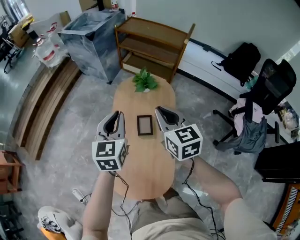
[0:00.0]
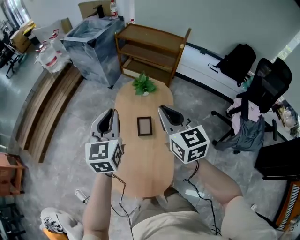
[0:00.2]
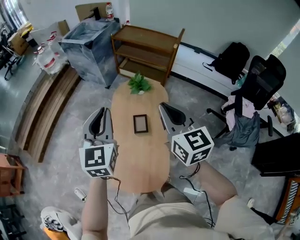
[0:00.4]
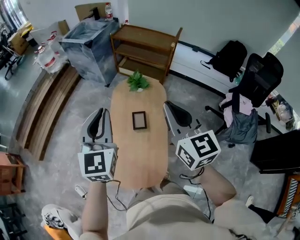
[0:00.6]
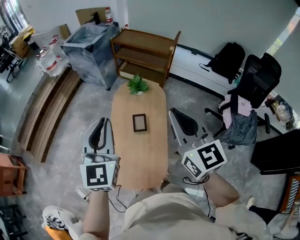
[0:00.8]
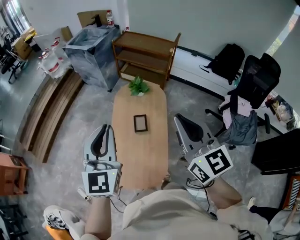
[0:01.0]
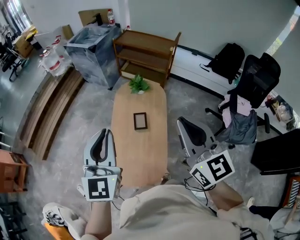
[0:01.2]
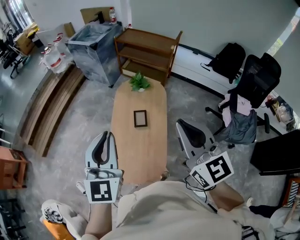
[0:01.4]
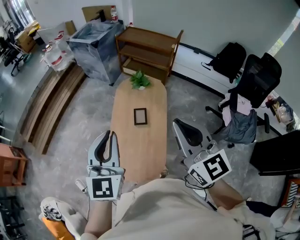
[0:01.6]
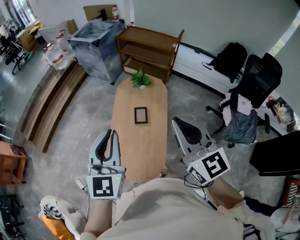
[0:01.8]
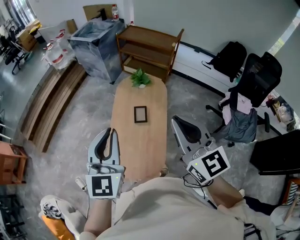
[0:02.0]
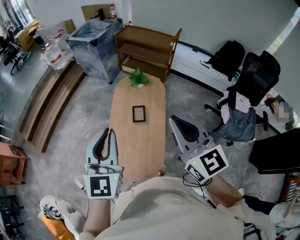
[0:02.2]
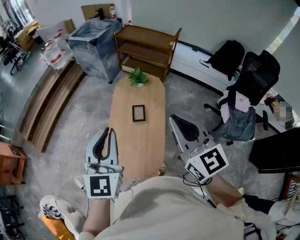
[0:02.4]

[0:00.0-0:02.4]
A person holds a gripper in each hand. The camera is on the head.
0:00.0 to 0:01.2: Both grippers move upward and backward, about 30 cm. The right gripper changes its angle by approximately 20 degrees.
0:01.2 to 0:02.4: The left gripper shifts by some 5 cm.

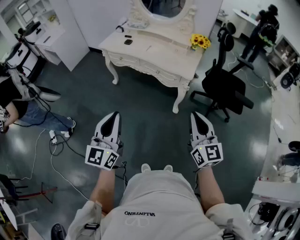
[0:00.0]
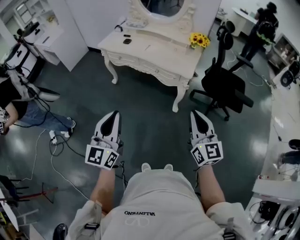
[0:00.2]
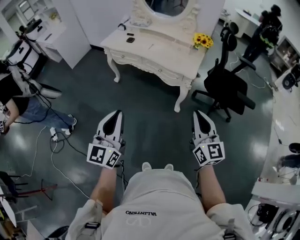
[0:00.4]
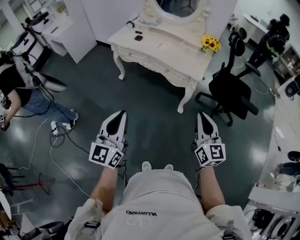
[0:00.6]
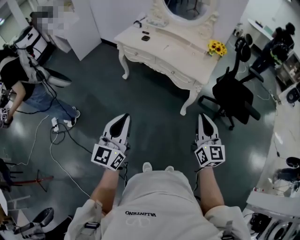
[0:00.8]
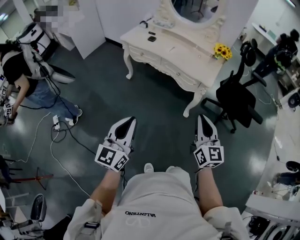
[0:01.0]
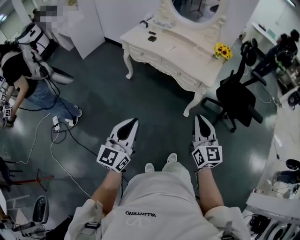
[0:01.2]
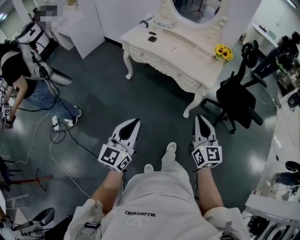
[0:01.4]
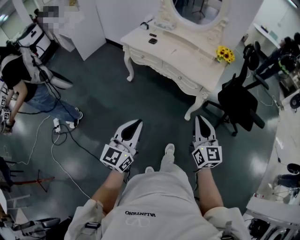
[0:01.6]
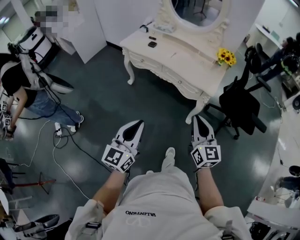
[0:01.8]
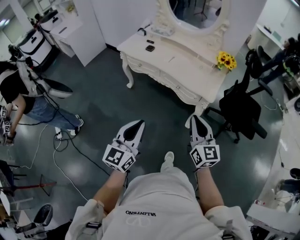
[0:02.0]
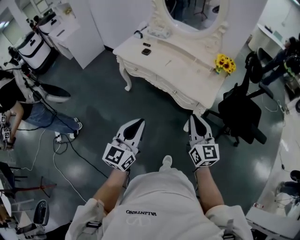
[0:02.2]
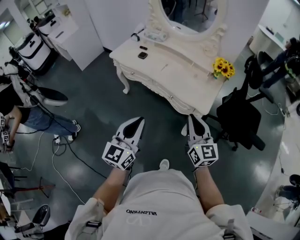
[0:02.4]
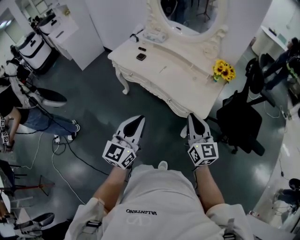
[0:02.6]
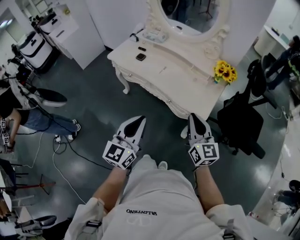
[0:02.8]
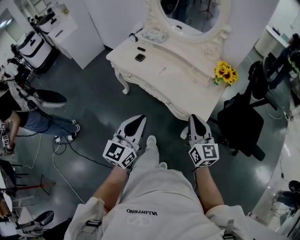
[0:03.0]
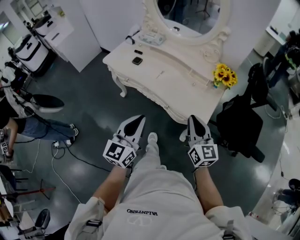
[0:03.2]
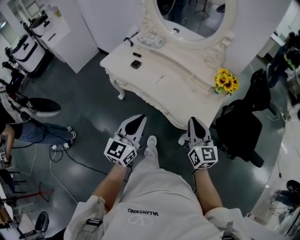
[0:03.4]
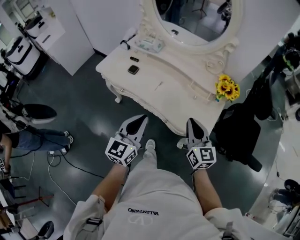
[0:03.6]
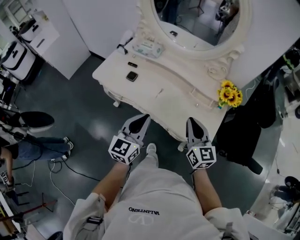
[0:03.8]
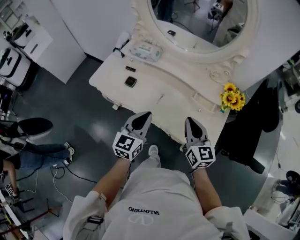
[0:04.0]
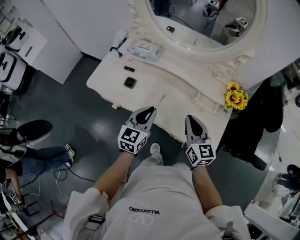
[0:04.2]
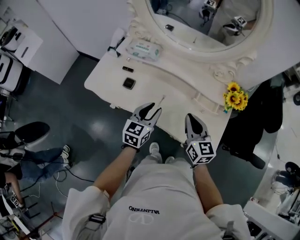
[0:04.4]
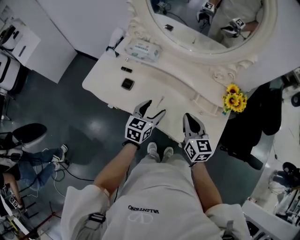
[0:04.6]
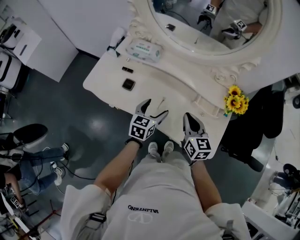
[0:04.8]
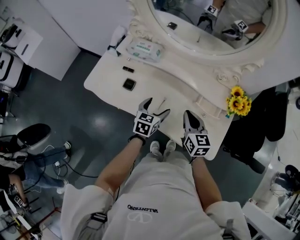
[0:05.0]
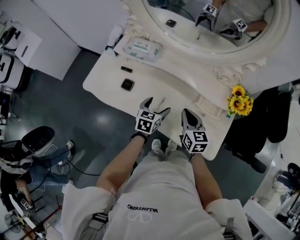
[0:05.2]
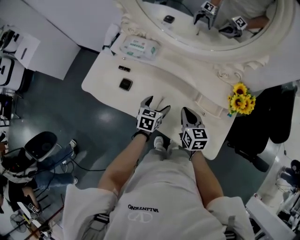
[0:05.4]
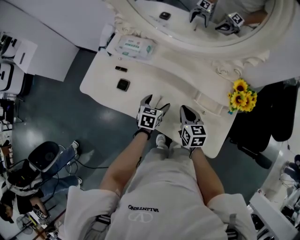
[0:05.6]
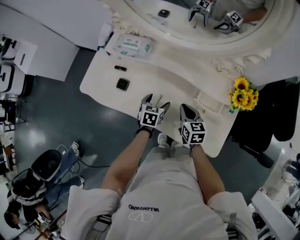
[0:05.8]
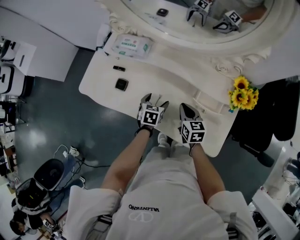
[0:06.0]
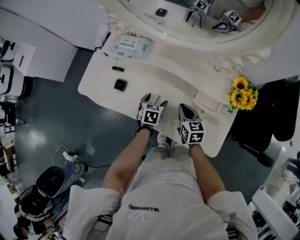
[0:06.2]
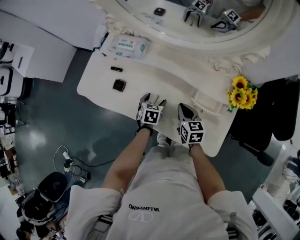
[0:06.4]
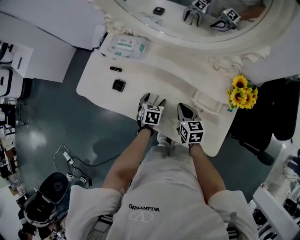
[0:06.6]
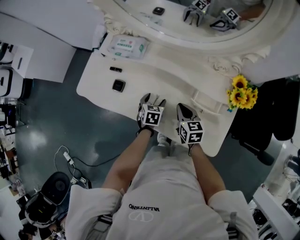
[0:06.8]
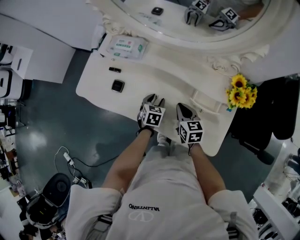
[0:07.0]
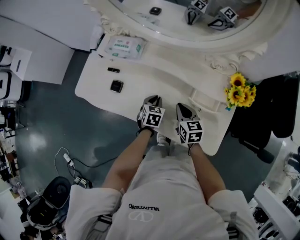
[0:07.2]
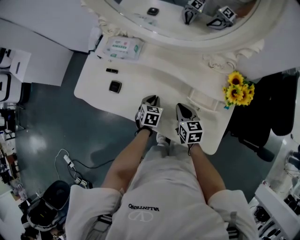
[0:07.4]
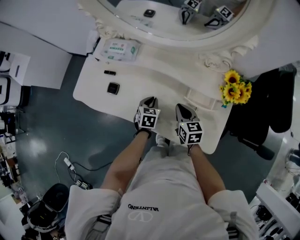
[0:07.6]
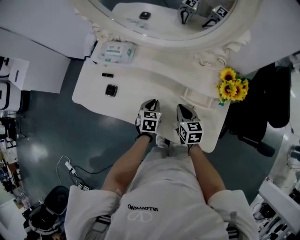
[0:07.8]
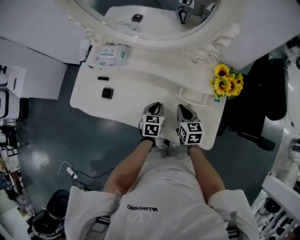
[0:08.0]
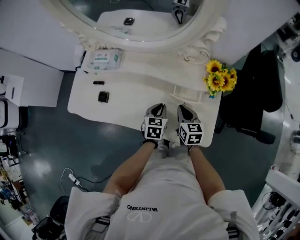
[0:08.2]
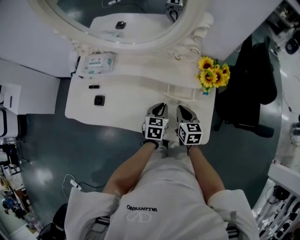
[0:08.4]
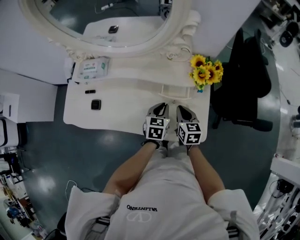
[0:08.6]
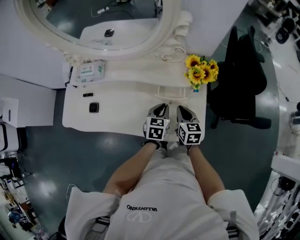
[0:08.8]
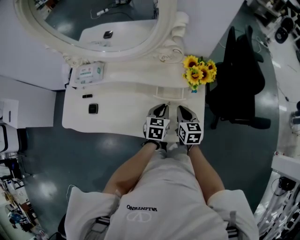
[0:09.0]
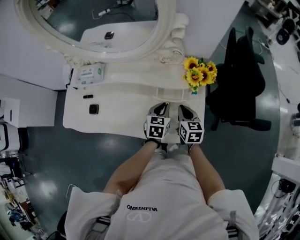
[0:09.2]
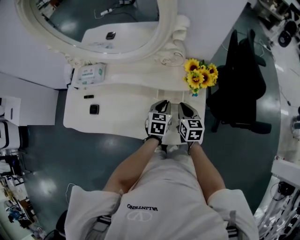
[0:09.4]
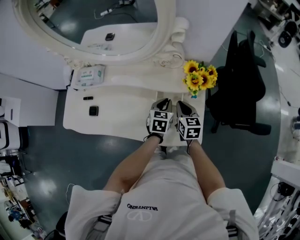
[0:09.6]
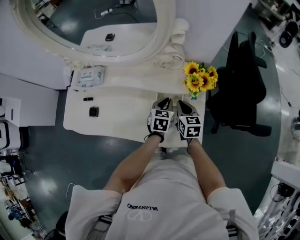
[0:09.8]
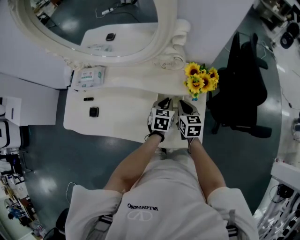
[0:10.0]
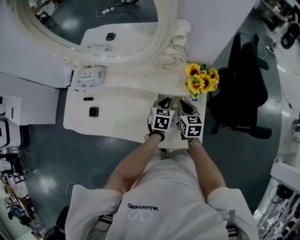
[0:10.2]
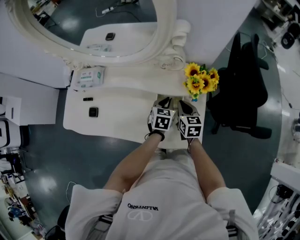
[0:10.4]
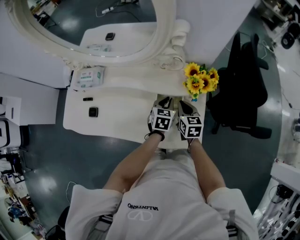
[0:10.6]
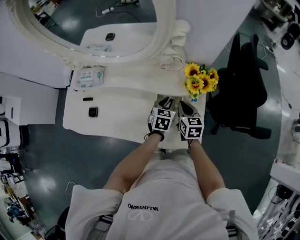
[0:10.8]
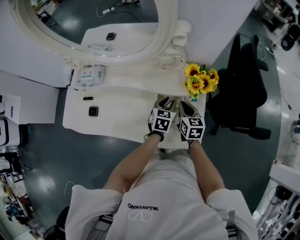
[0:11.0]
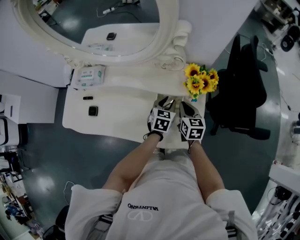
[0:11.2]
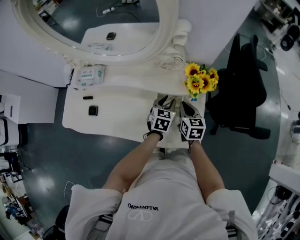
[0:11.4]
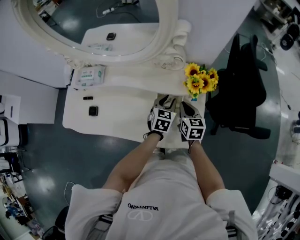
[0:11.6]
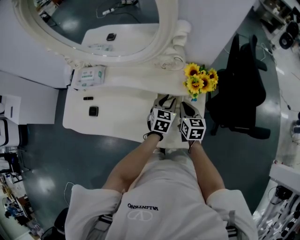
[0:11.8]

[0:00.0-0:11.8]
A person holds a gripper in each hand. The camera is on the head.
0:00.0 to 0:01.4: The left gripper goes some 10 cm downward and to the left, while the right gripper heads to the left, covering roughly 10 cm.
0:01.4 to 0:03.0: The left gripper shifts some 35 cm forward and to the right. Meanwhile the right gripper heads forward, covering roughly 30 cm.
0:03.0 to 0:04.4: Both grippers travel together forward, approximately 35 cm. The left gripper turns by some 30 degrees.
0:04.4 to 0:06.0: The grippers both shift downward and forward by about 20 cm. The left gripper tips its fingers downward by about 30 degrees, and opens up, while the right gripper rotates about 20 degrees.
0:06.0 to 0:07.4: The left gripper closes its fingers.
0:07.4 to 0:08.8: The right gripper shifts some 15 cm to the right, and rotates approximately 20 degrees. The left gripper is displaced to the right and upward by approximately 20 cm, and changes its angle by roughly 20 degrees.
0:08.8 to 0:10.4: Both grippers move forward, about 10 cm.
0:10.4 to 0:11.8: The grippers stay close to where they were, moving slightly.

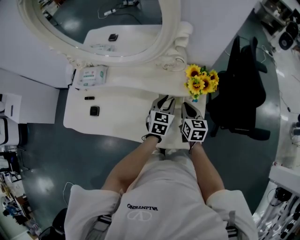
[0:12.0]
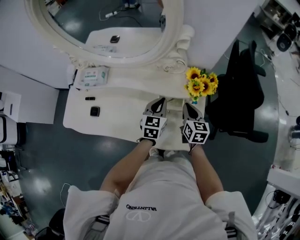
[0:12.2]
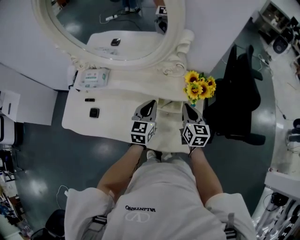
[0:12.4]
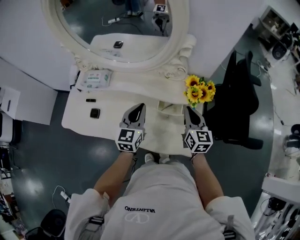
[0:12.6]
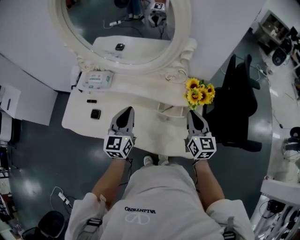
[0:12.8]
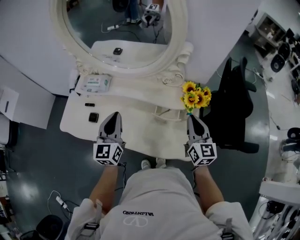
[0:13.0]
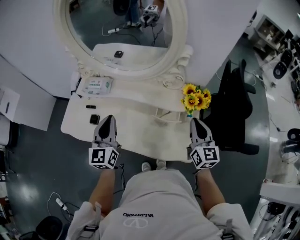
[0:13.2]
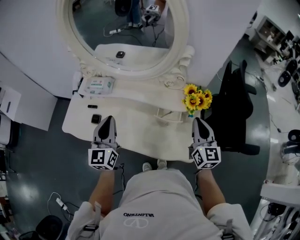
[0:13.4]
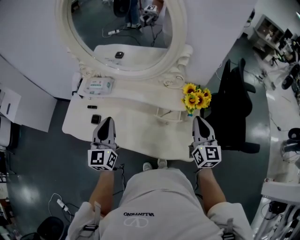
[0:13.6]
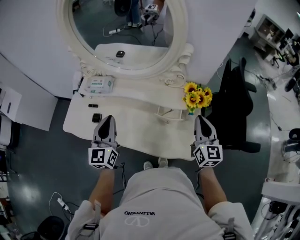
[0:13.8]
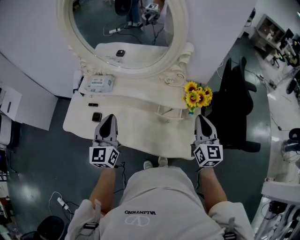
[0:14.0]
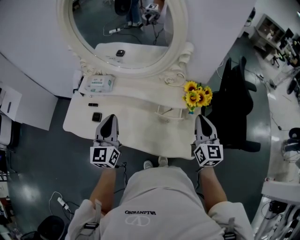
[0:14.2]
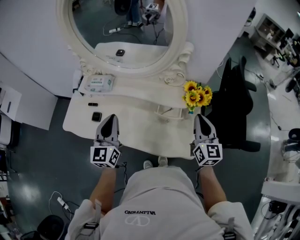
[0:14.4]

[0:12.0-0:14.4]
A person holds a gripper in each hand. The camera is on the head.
0:12.0 to 0:13.2: The left gripper is displaced to the left, upward and backward by approximately 35 cm, and angles its fingers upward, by some 30 degrees, while the right gripper heads upward, covering approximately 15 cm, and swivels some 20 degrees.
0:13.2 to 0:14.4: There are only small adjustments of the grippers.

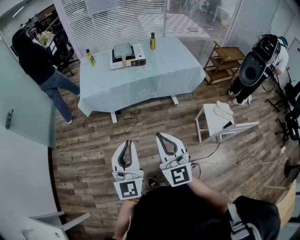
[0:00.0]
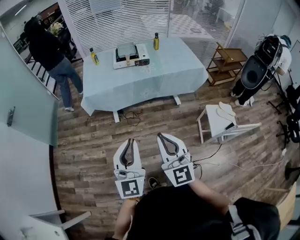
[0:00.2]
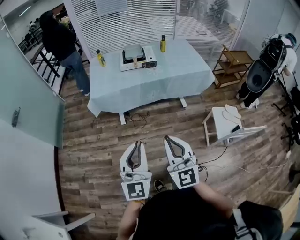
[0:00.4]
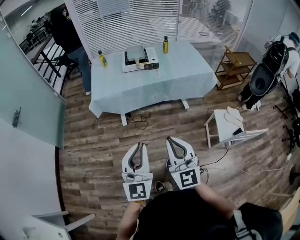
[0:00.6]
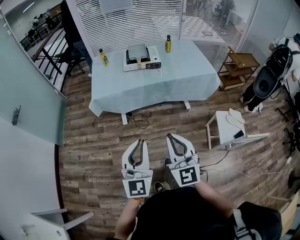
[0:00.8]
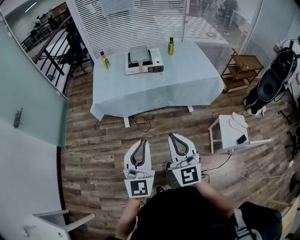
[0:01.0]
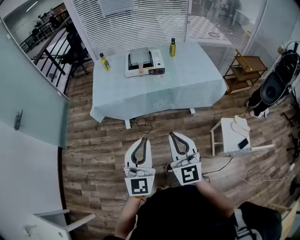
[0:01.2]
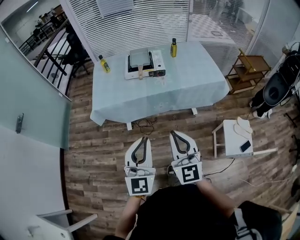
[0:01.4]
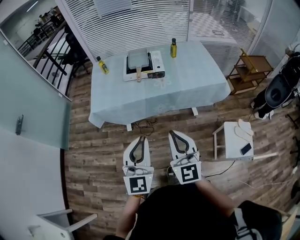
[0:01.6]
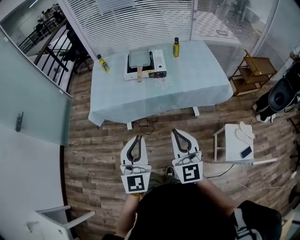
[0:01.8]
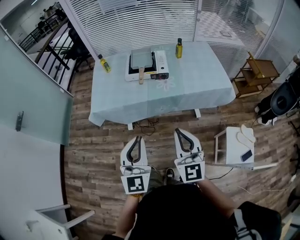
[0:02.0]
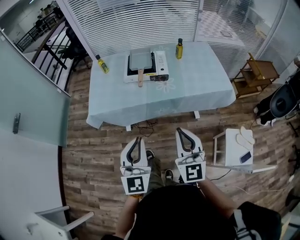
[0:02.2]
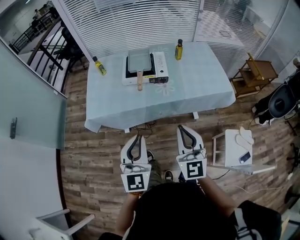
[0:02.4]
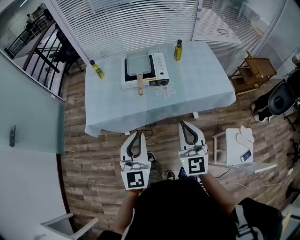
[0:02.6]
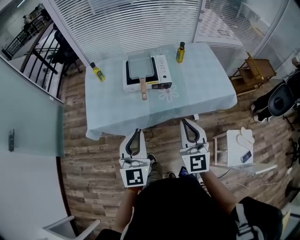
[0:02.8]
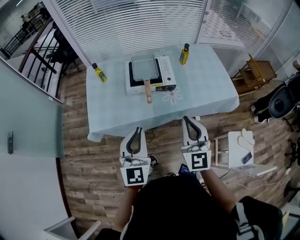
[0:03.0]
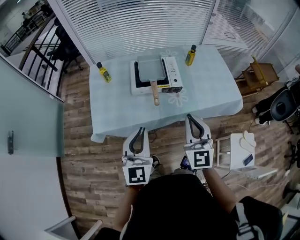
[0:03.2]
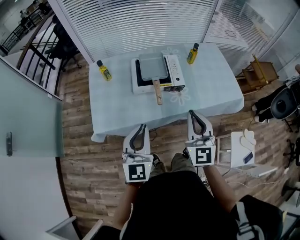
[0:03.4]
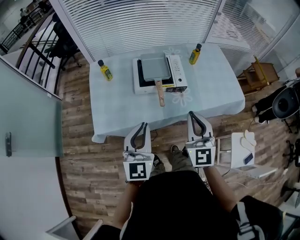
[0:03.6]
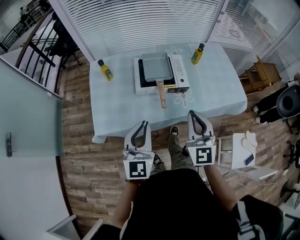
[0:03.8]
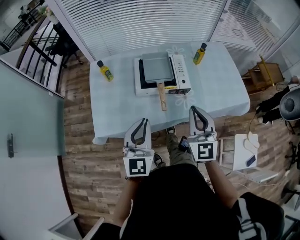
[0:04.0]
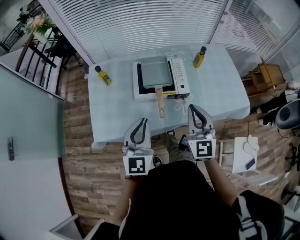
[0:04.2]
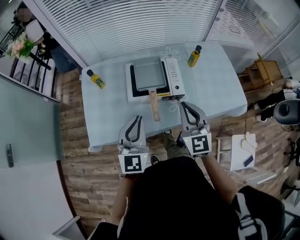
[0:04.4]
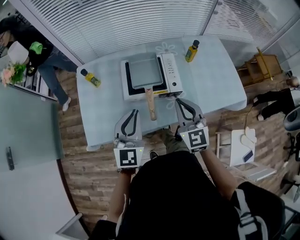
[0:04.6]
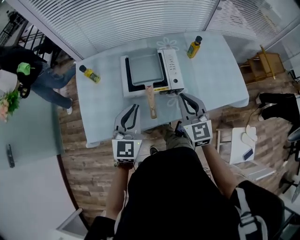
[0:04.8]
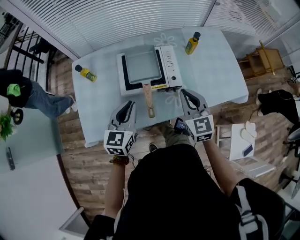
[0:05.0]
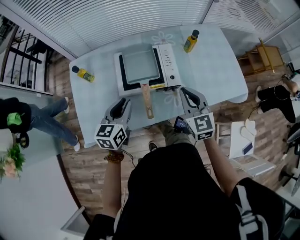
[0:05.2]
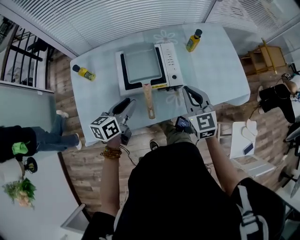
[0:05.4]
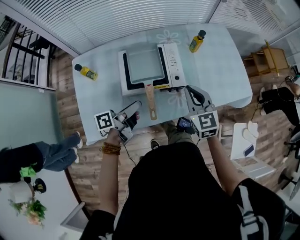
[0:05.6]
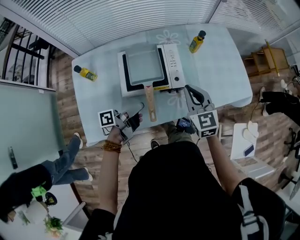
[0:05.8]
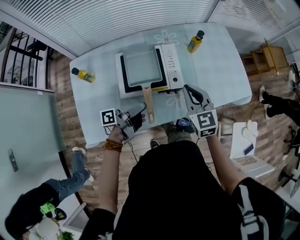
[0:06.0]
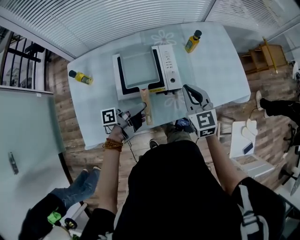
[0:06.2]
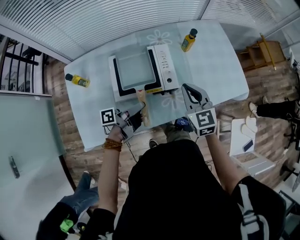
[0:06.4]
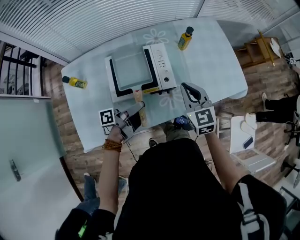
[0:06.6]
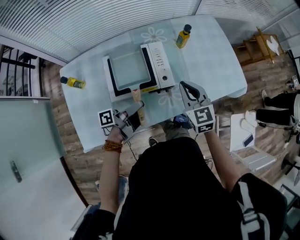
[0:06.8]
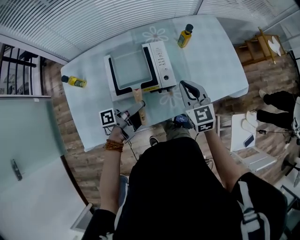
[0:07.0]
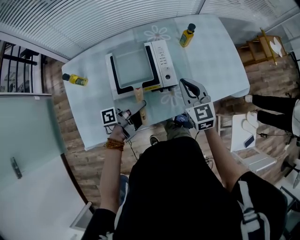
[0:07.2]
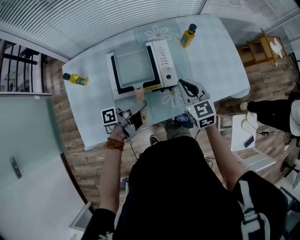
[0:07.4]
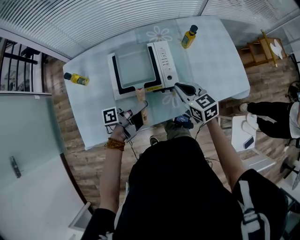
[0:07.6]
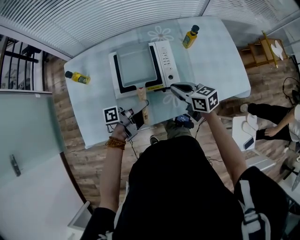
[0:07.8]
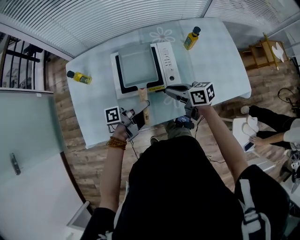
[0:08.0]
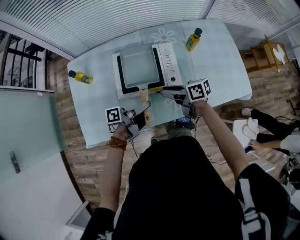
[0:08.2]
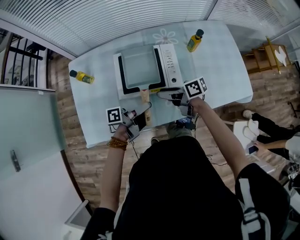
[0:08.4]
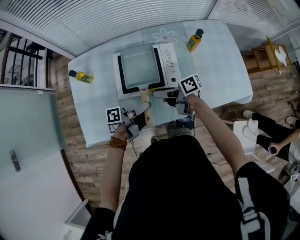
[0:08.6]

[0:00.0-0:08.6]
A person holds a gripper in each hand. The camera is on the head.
0:00.0 to 0:01.4: Both grippers travel together forward, approximately 20 cm.
0:01.4 to 0:02.8: Both grippers travel together forward, approximately 25 cm.
0:02.8 to 0:04.4: The grippers both shift forward by approximately 20 cm.
0:04.4 to 0:05.8: The left gripper goes about 20 cm downward and forward, rolls counterclockwise, seen from behind, by approximately 90 degrees, and opens up, while the right gripper goes about 10 cm forward and downward.
0:05.8 to 0:07.2: The left gripper shifts by approximately 5 cm.
0:07.2 to 0:08.6: The right gripper shifts by some 15 cm, swivels roughly 90 degrees, and opens.
